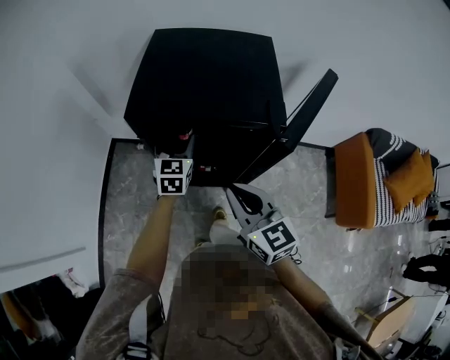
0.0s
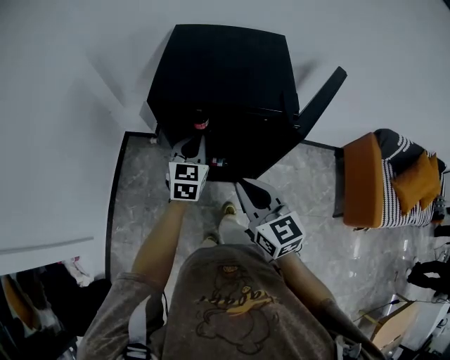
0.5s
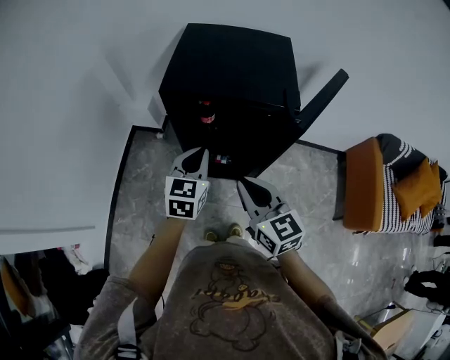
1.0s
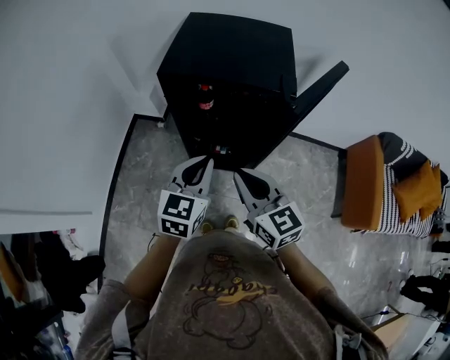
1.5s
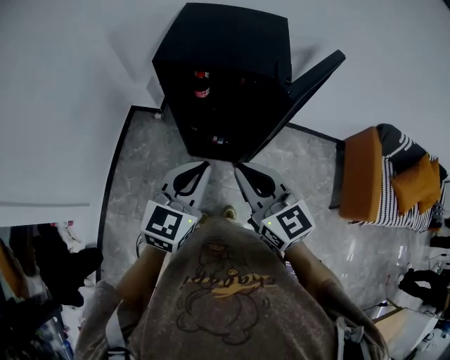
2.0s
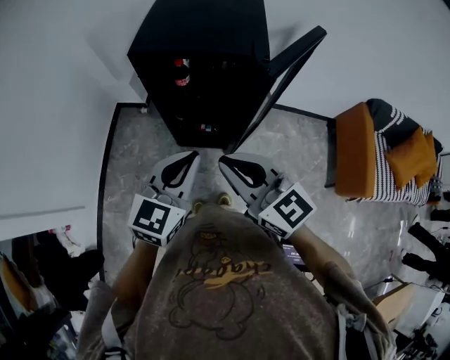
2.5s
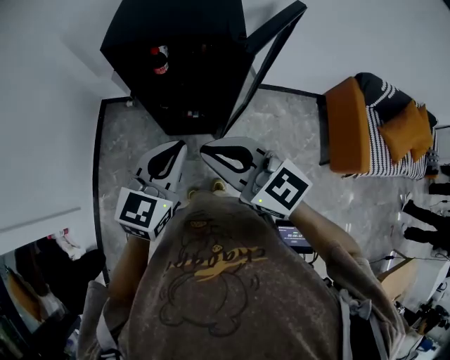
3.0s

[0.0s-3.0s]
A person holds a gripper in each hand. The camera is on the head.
0.0s to 1.5s: The right gripper goes about 10 cm backward, while the left gripper moves backward and upward, some 25 cm, and closes up.
1.5s to 3.0s: The left gripper travels backward by some 10 cm; the right gripper moves backward and upward, approximately 10 cm.

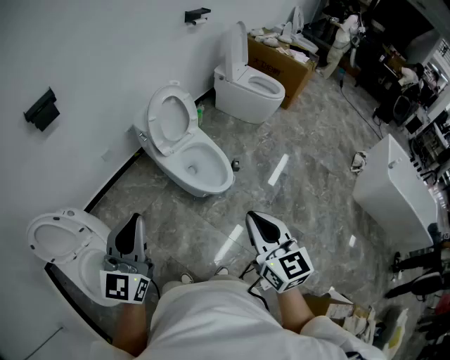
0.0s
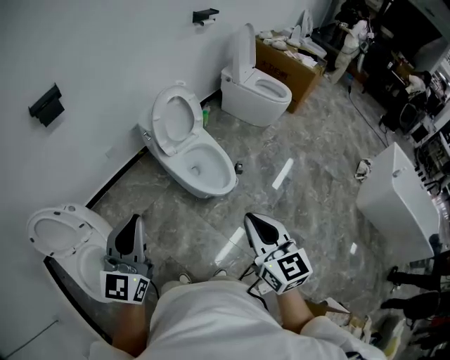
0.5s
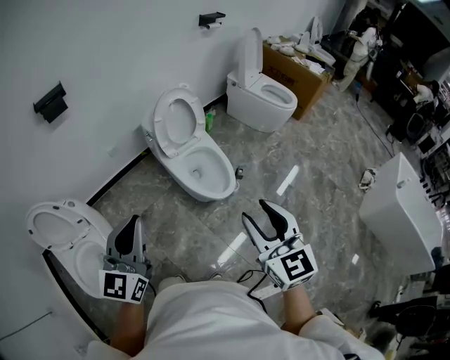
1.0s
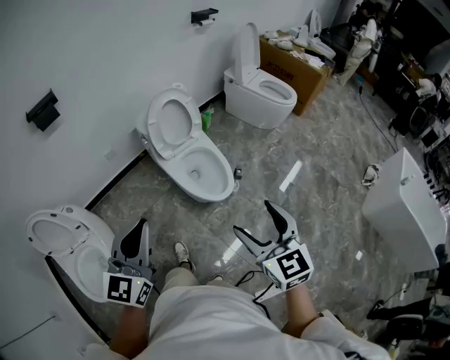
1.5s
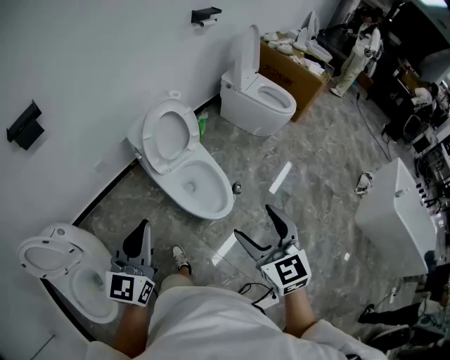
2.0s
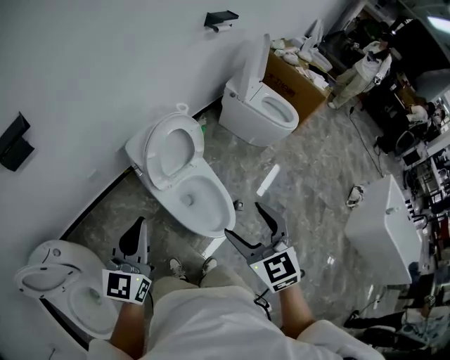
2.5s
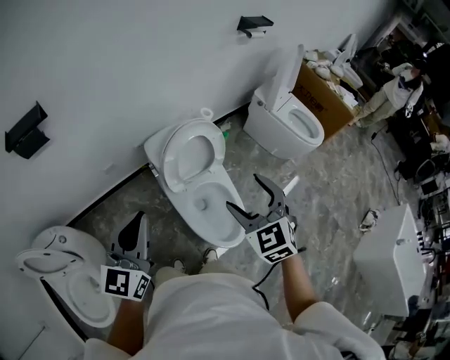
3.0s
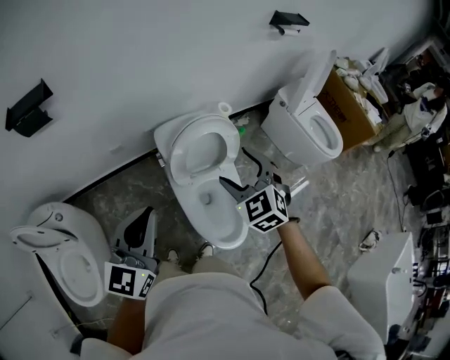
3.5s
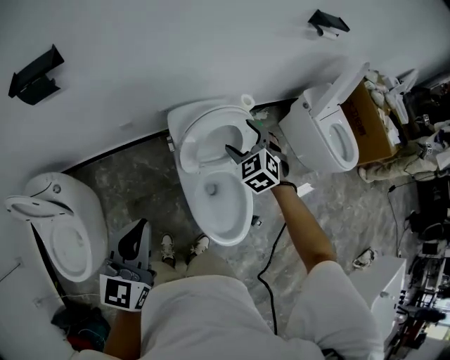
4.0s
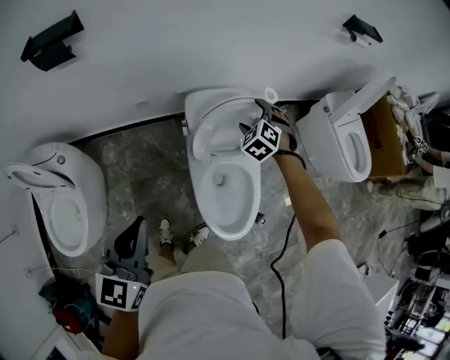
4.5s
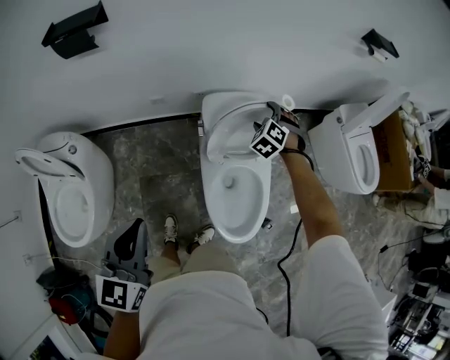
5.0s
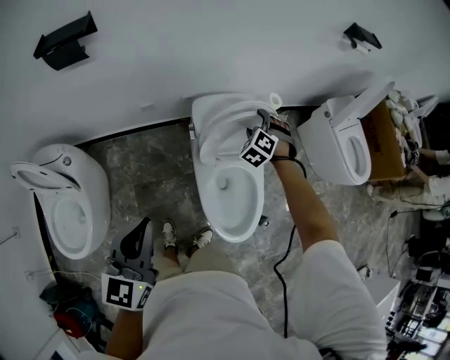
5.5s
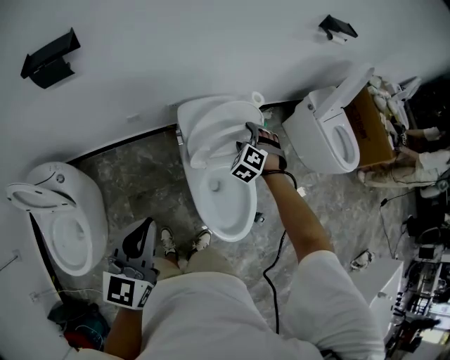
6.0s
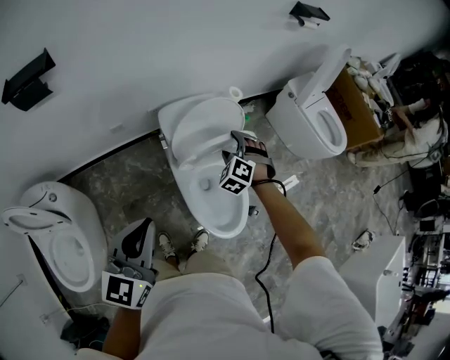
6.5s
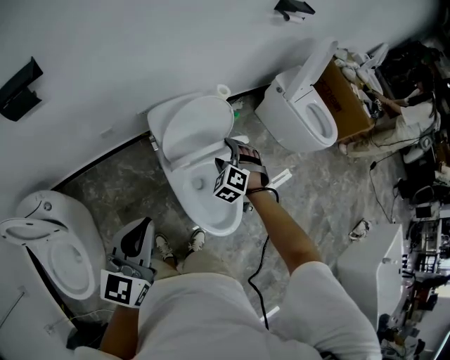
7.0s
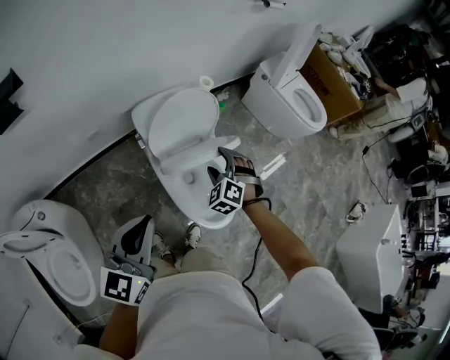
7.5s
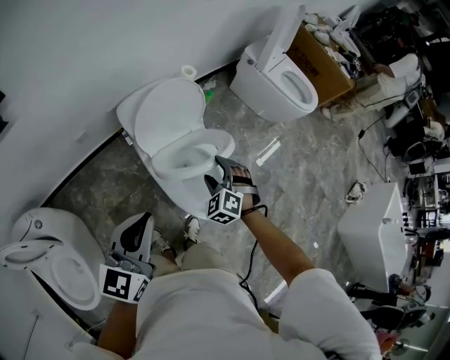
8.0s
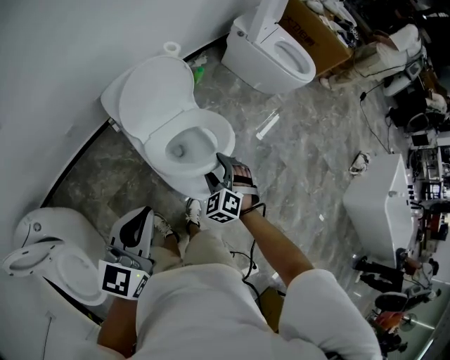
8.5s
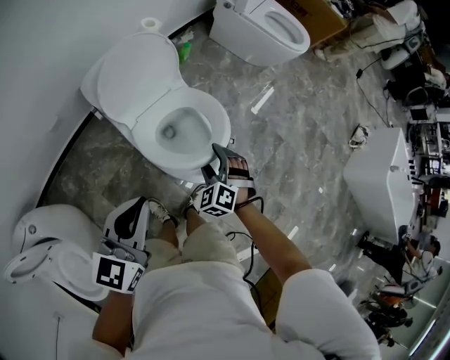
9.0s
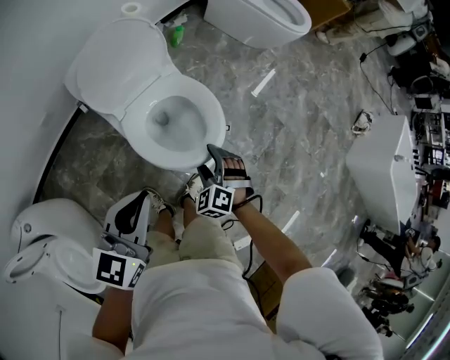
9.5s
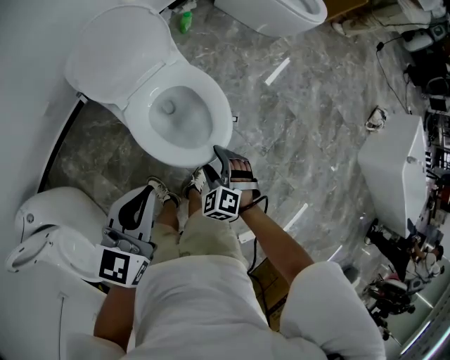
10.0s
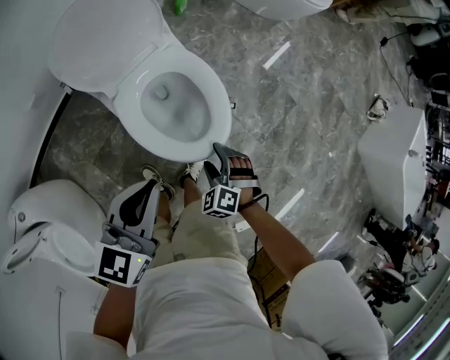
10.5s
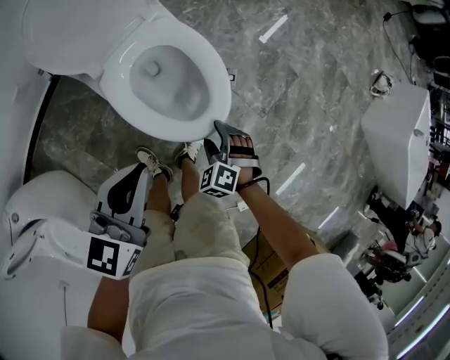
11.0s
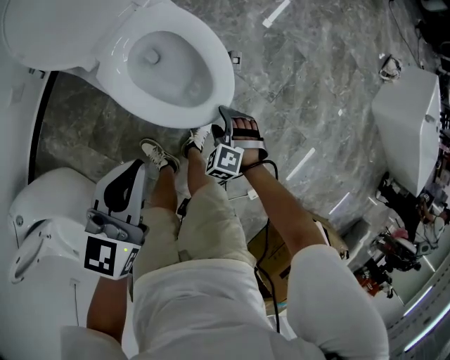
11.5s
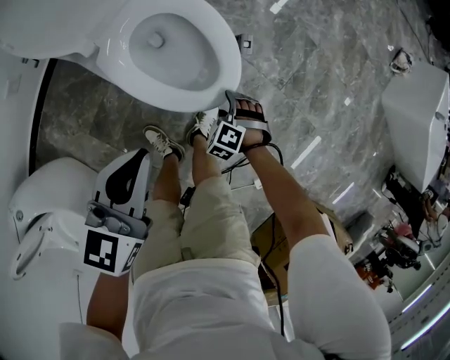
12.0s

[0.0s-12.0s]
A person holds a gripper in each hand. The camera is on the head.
0.0s to 2.0s: The grippers both shift forward by some 20 cm. The right gripper opens up.
2.0s to 4.0s: The left gripper goes approximately 20 cm forward, and turns by roughly 30 degrees. Meanwhile the right gripper moves forward, some 50 cm, and swivels roughly 50 degrees.
4.0s to 6.0s: The right gripper heads downward, covering roughly 10 cm, and changes its angle by approximately 30 degrees.
6.0s to 8.0s: The left gripper moves to the right, some 10 cm, and turns by approximately 20 degrees, while the right gripper goes some 20 cm backward and to the right.
8.0s to 10.0s: The right gripper heads downward, to the right and backward, covering about 25 cm. Meanwhile the left gripper goes roughly 20 cm to the right and downward.
10.0s to 12.0s: The right gripper travels downward by approximately 25 cm, and turns by approximately 20 degrees, while the left gripper moves downward, about 15 cm.

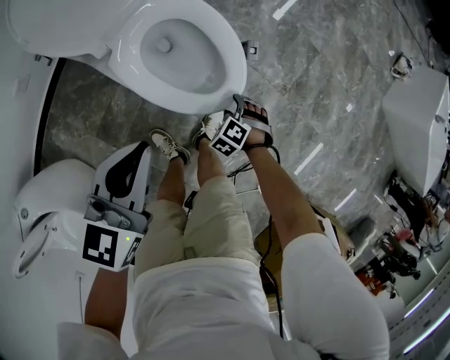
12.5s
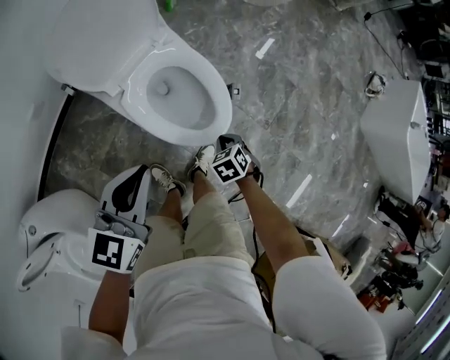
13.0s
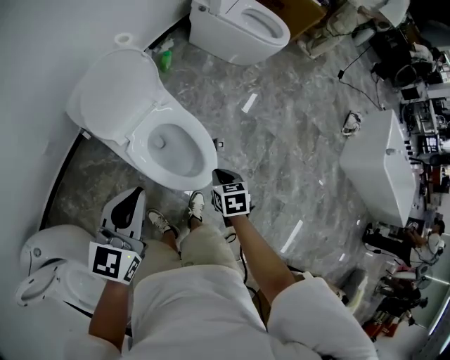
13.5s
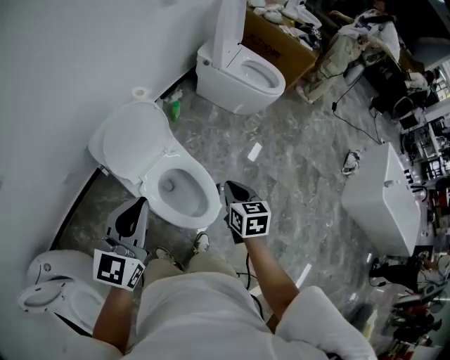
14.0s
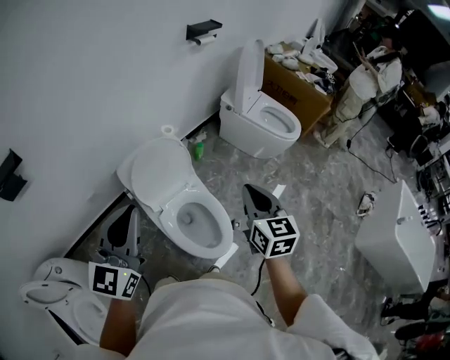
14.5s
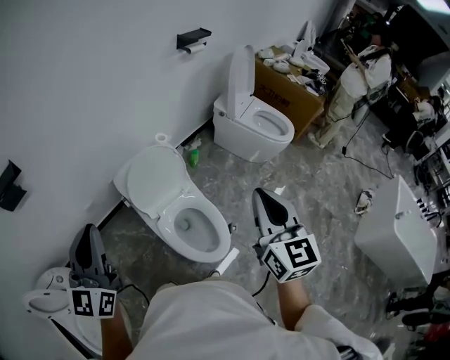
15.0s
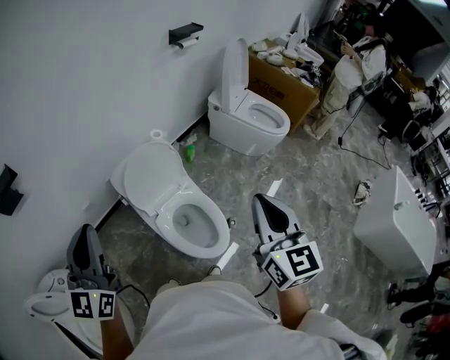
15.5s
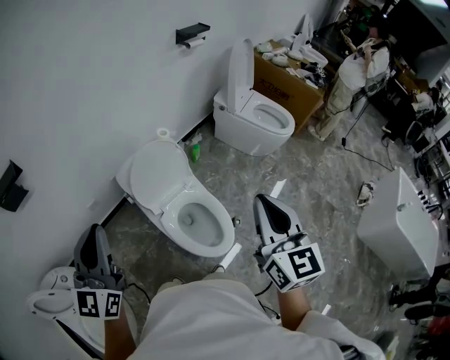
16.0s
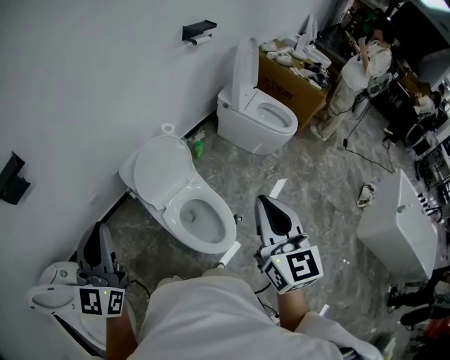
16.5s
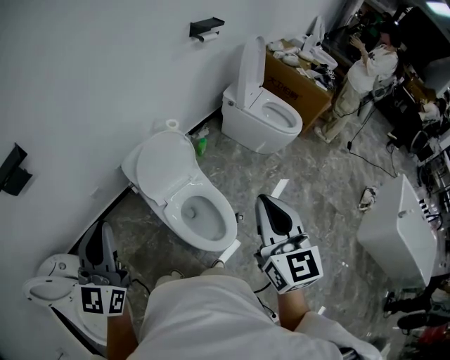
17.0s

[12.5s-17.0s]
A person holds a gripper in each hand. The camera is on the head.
12.5s to 14.5s: The right gripper goes approximately 70 cm upward, tips its fingers upward by approximately 60 degrees, and closes up. Meanwhile the left gripper heads upward, covering roughly 40 cm, and changes its angle by approximately 40 degrees.
14.5s to 17.0s: The left gripper goes approximately 10 cm to the left and backward. The right gripper heads upward and backward, covering some 15 cm.

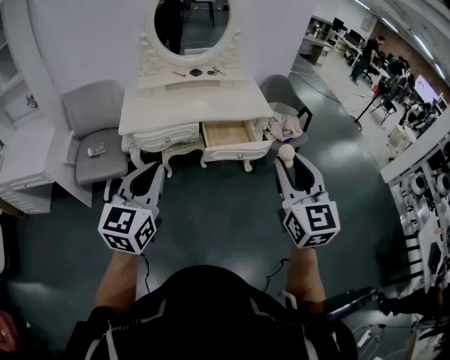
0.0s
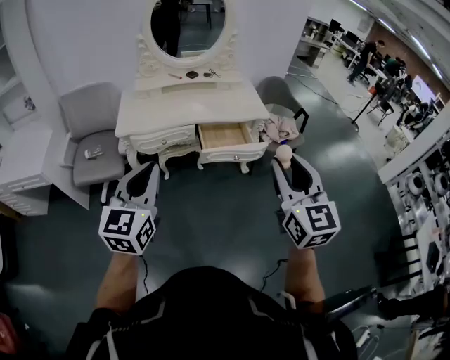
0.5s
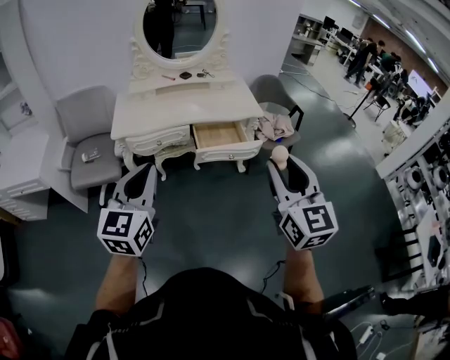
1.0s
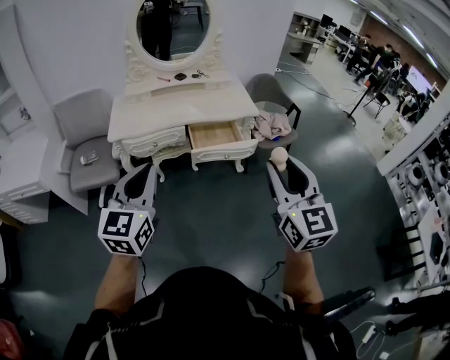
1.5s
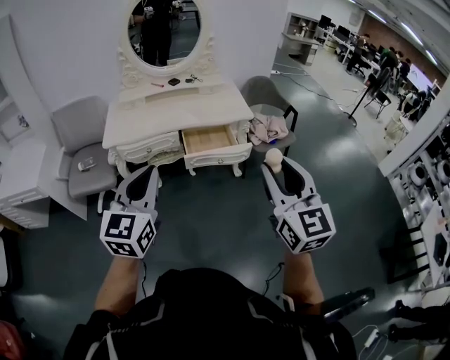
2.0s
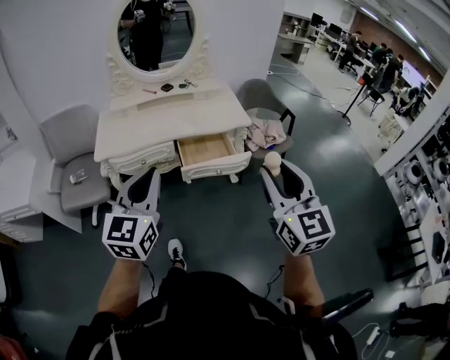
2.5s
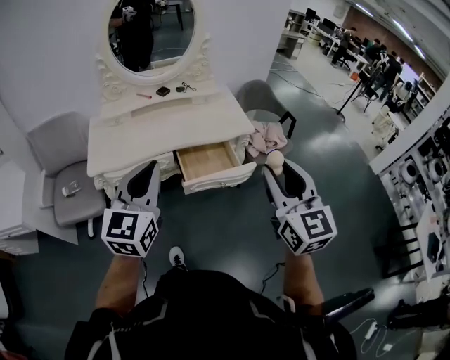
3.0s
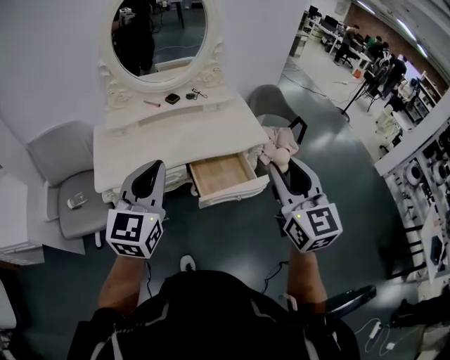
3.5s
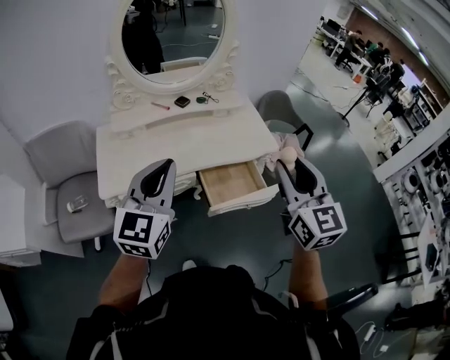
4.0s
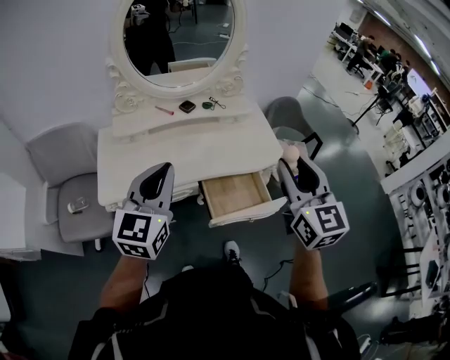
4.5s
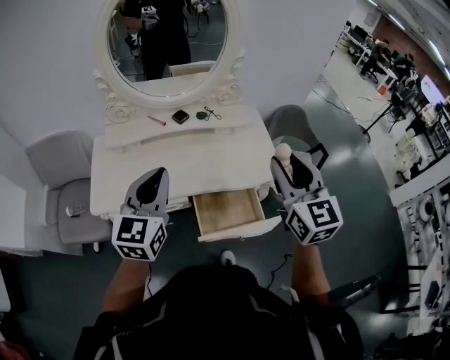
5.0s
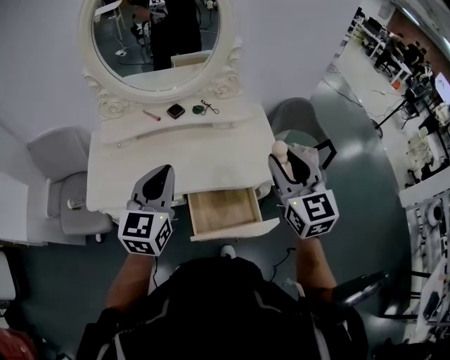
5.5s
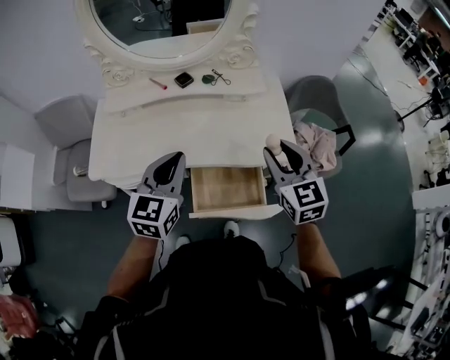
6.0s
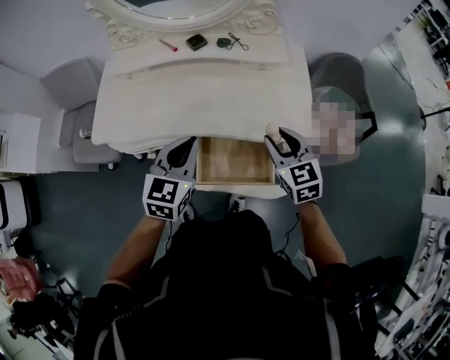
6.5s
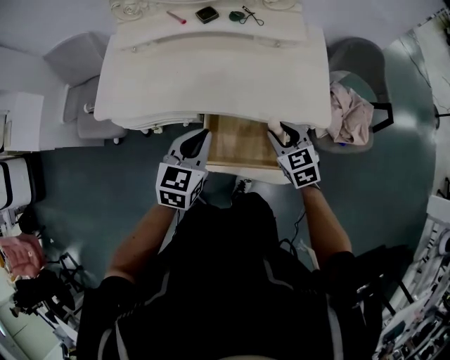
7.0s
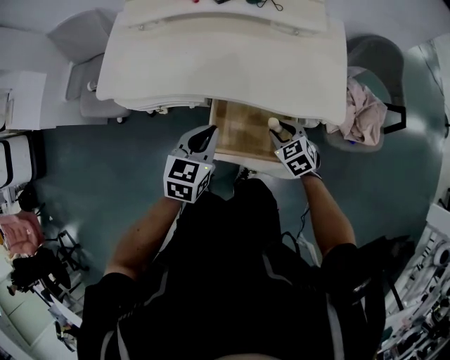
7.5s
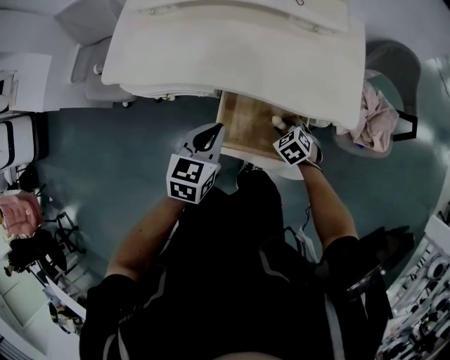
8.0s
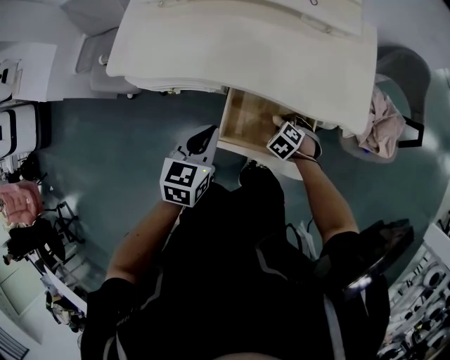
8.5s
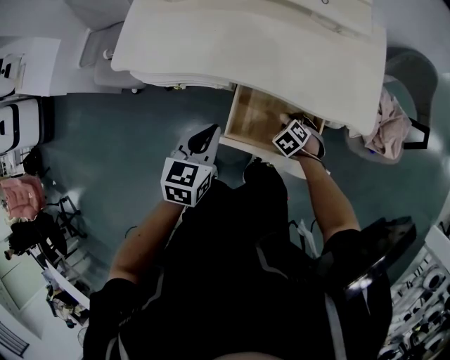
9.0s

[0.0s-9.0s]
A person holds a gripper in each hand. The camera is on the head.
0.0s to 2.0s: The two grippers go about 10 cm to the right.
2.0s to 4.5s: Both grippers are carried forward and to the left, about 40 cm.
4.5s to 7.0s: The right gripper moves downward and forward, roughly 40 cm, and points its fingers roughly 40 degrees further downward; the left gripper moves downward and to the right, approximately 35 cm, and rotates roughly 30 degrees.
7.0s to 9.0s: The left gripper moves about 10 cm, while the right gripper goes approximately 25 cm downward, and points its fingers some 40 degrees further downward.
